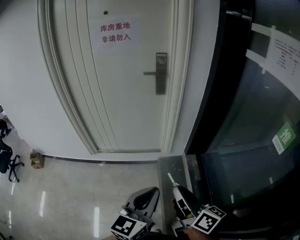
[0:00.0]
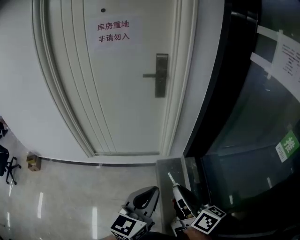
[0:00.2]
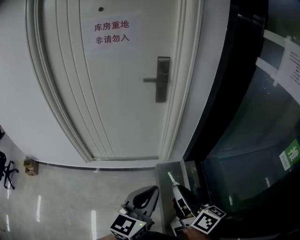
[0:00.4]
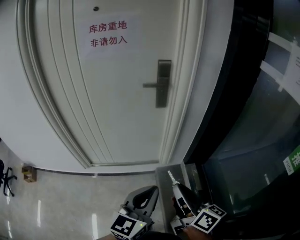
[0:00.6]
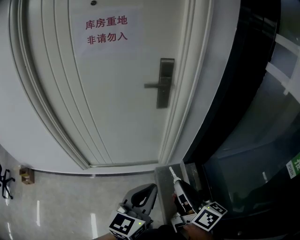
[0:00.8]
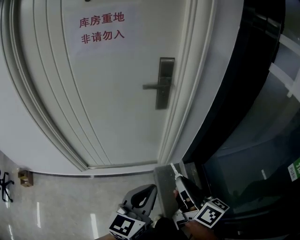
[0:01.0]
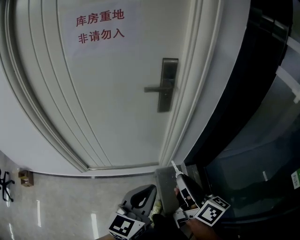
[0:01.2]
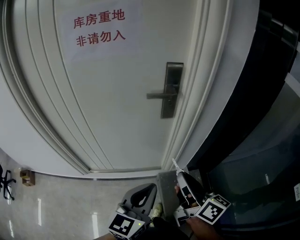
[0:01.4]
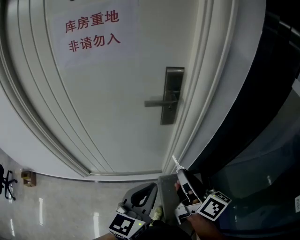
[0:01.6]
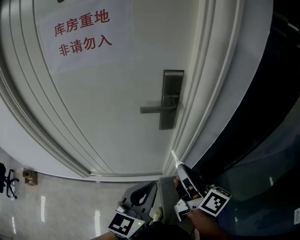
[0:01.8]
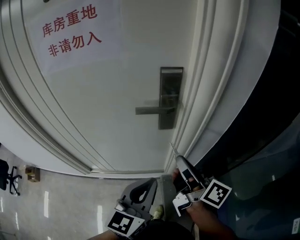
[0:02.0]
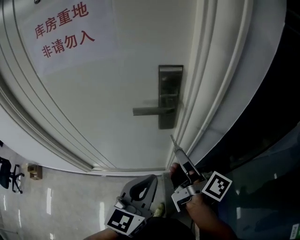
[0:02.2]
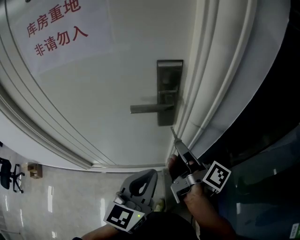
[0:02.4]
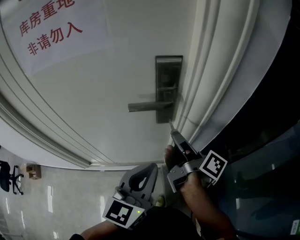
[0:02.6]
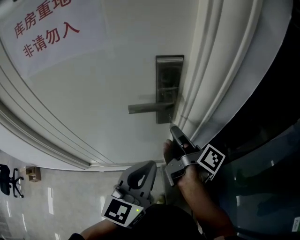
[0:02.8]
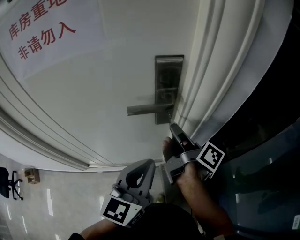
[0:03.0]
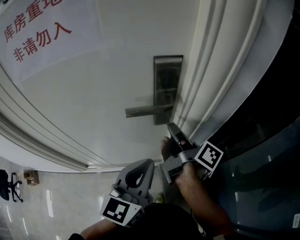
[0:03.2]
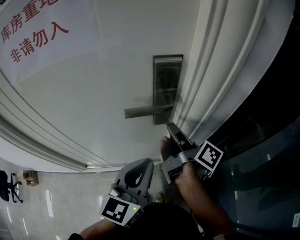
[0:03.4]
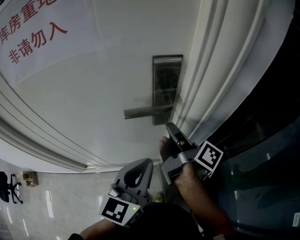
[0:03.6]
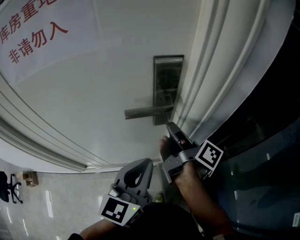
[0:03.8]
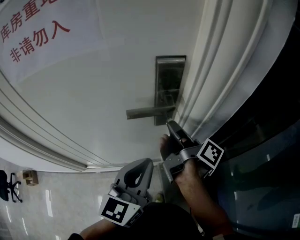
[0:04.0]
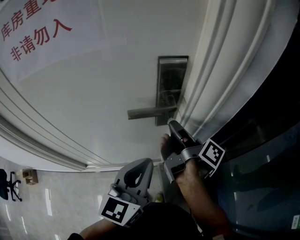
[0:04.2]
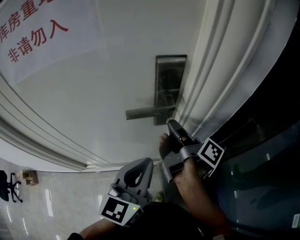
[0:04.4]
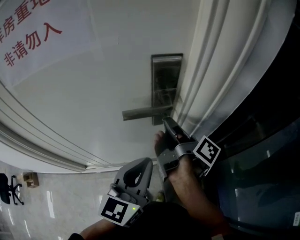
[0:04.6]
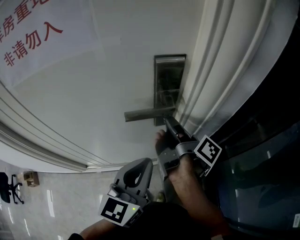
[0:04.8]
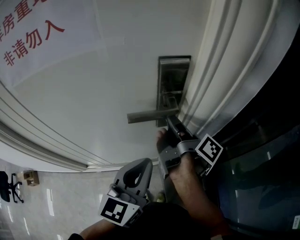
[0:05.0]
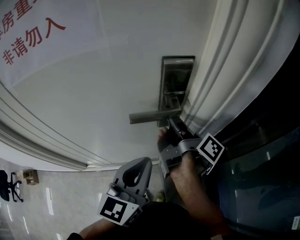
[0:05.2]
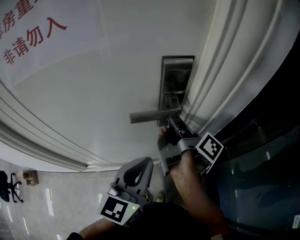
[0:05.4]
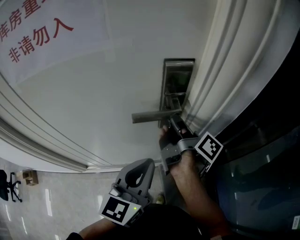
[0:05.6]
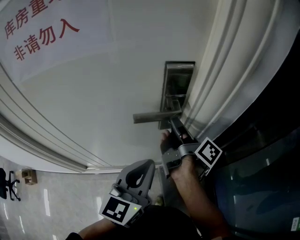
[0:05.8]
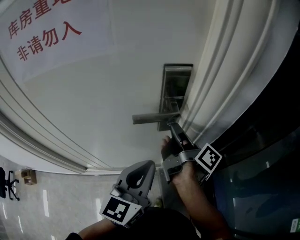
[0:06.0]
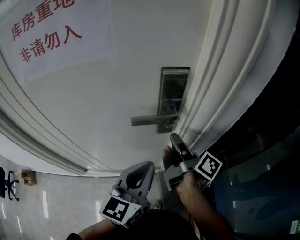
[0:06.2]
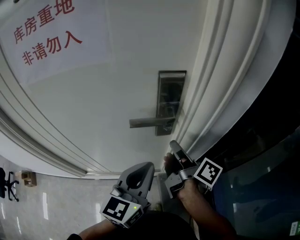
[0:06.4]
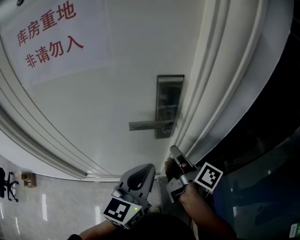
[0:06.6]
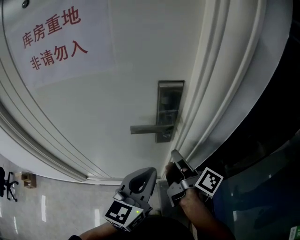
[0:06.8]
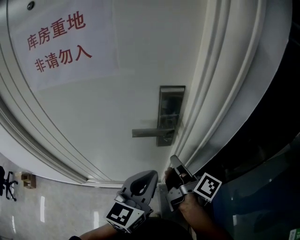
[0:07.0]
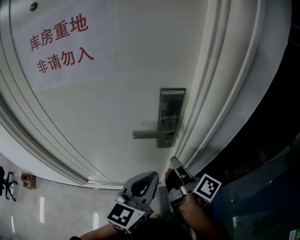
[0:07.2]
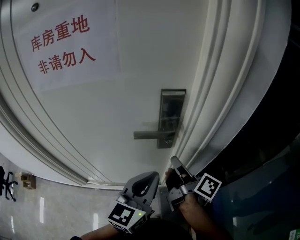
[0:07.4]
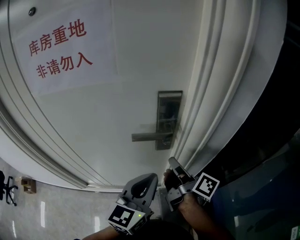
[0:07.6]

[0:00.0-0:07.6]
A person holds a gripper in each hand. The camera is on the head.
0:00.0 to 0:01.6: Both grippers move forward, roughly 40 cm.
0:01.6 to 0:03.0: The grippers both shift forward by some 20 cm. The right gripper changes its angle by some 40 degrees.
0:03.0 to 0:06.0: There are only small adjustments of the grippers.
0:06.0 to 0:07.6: The right gripper is displaced backward by roughly 5 cm.

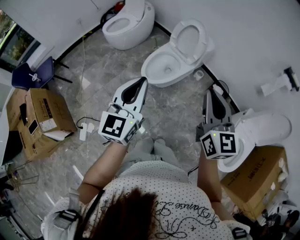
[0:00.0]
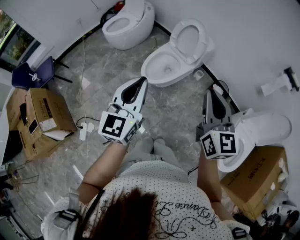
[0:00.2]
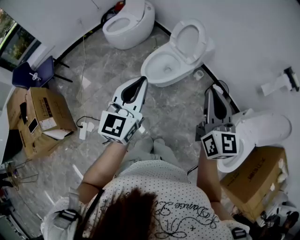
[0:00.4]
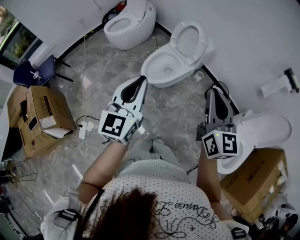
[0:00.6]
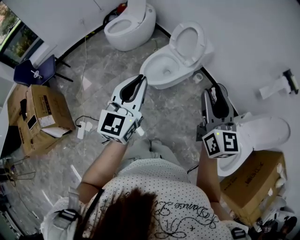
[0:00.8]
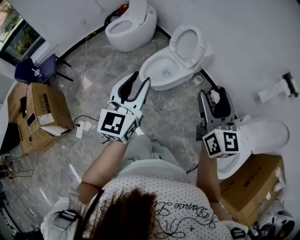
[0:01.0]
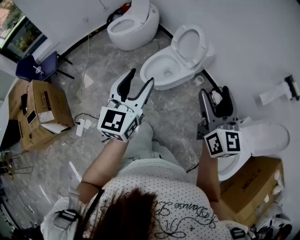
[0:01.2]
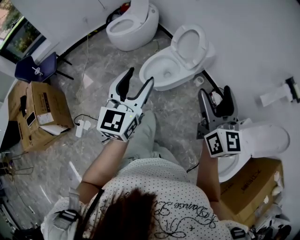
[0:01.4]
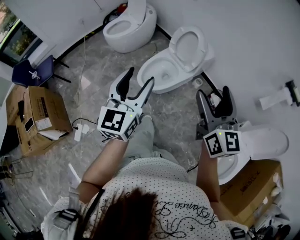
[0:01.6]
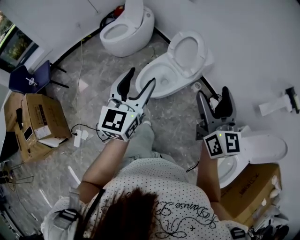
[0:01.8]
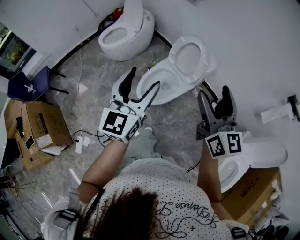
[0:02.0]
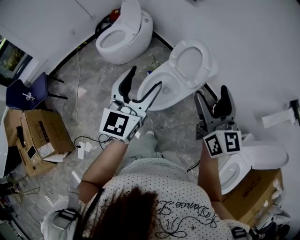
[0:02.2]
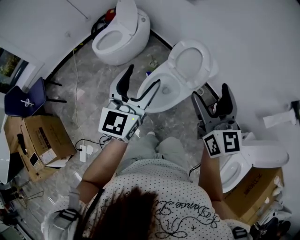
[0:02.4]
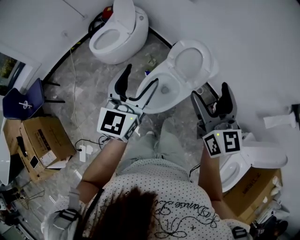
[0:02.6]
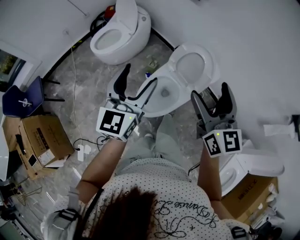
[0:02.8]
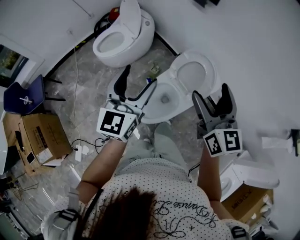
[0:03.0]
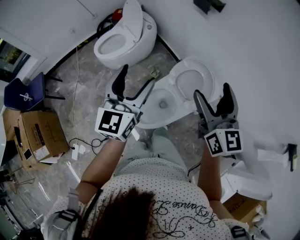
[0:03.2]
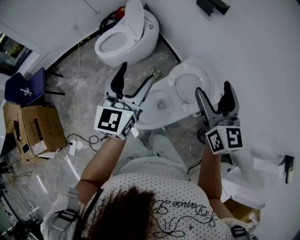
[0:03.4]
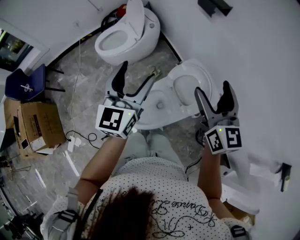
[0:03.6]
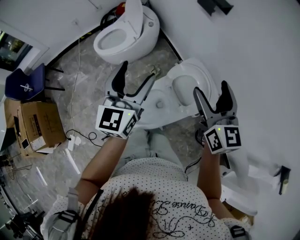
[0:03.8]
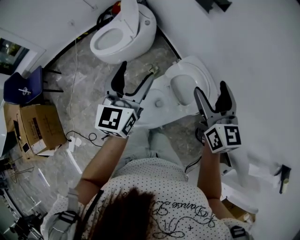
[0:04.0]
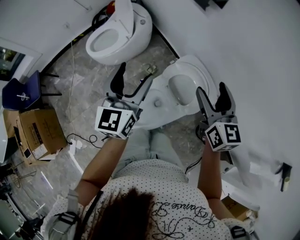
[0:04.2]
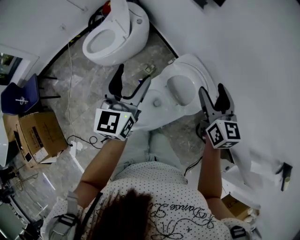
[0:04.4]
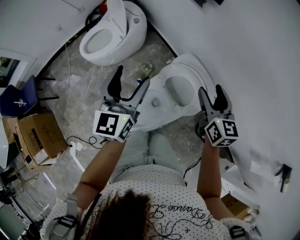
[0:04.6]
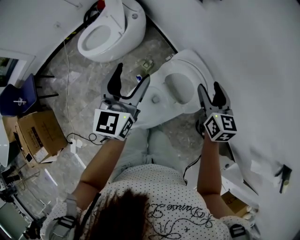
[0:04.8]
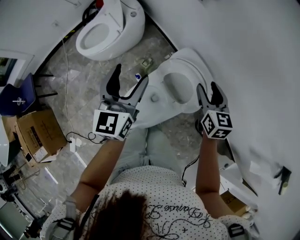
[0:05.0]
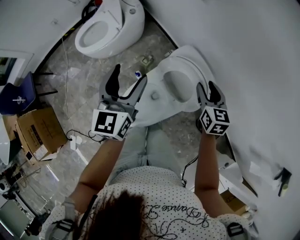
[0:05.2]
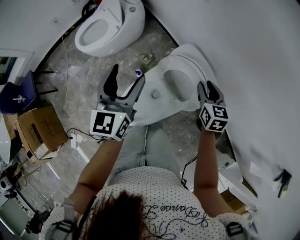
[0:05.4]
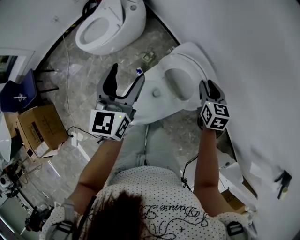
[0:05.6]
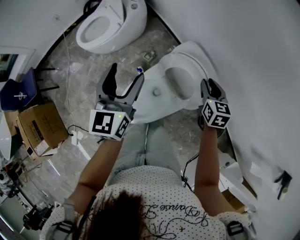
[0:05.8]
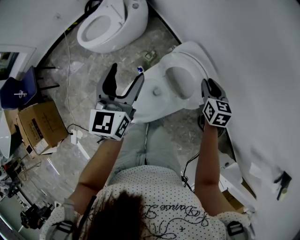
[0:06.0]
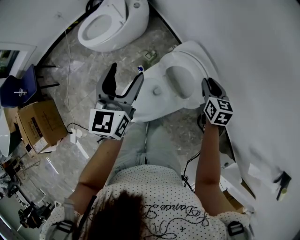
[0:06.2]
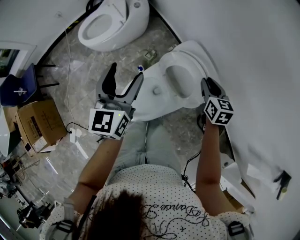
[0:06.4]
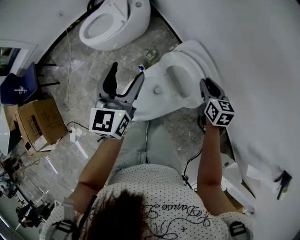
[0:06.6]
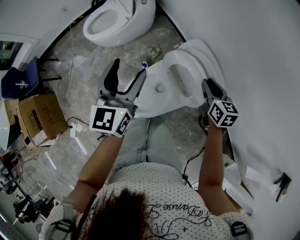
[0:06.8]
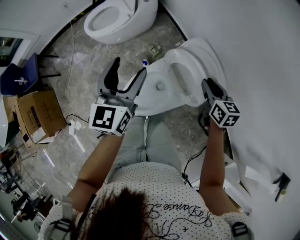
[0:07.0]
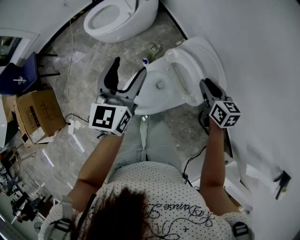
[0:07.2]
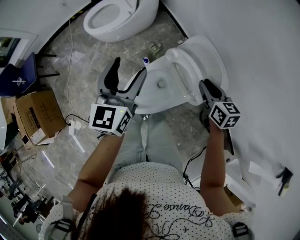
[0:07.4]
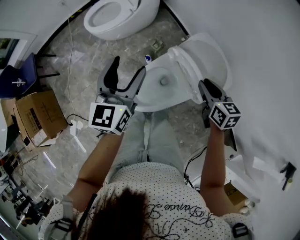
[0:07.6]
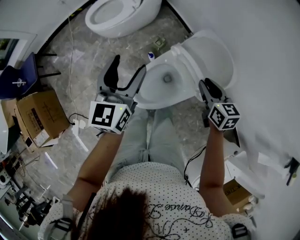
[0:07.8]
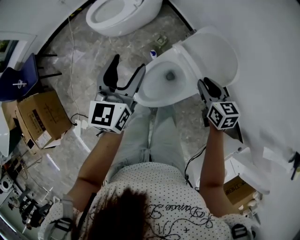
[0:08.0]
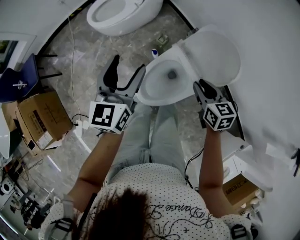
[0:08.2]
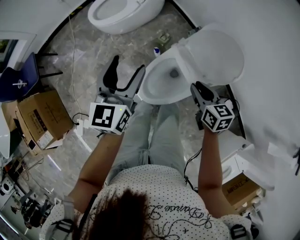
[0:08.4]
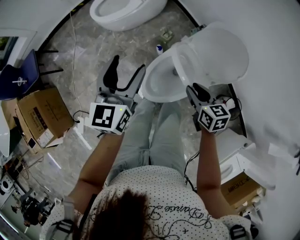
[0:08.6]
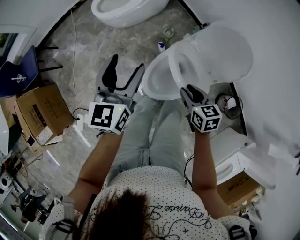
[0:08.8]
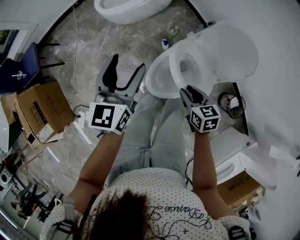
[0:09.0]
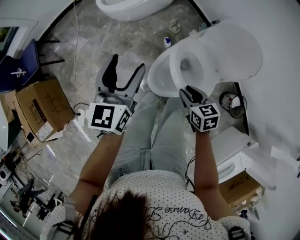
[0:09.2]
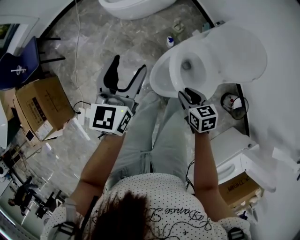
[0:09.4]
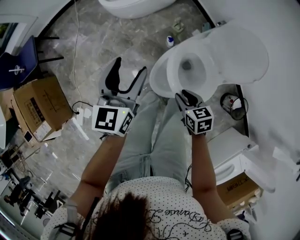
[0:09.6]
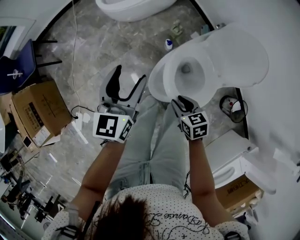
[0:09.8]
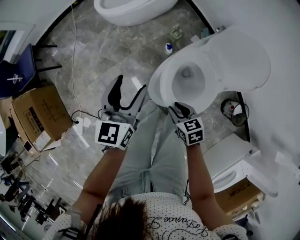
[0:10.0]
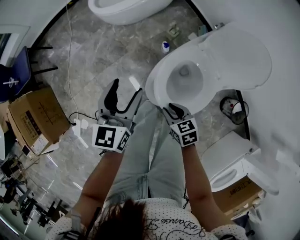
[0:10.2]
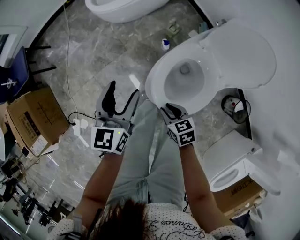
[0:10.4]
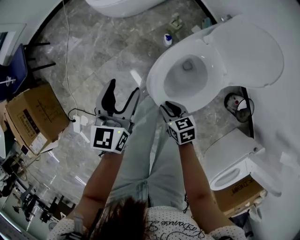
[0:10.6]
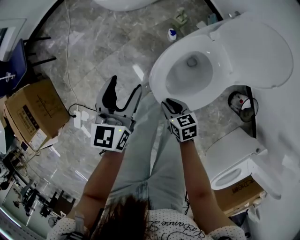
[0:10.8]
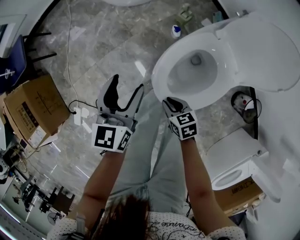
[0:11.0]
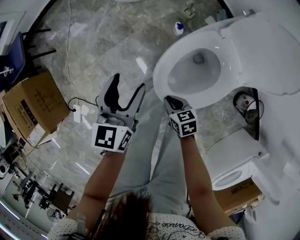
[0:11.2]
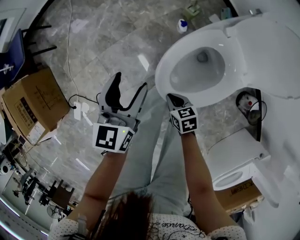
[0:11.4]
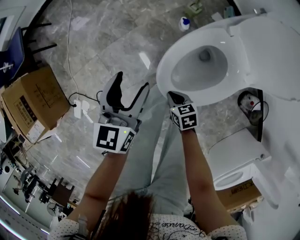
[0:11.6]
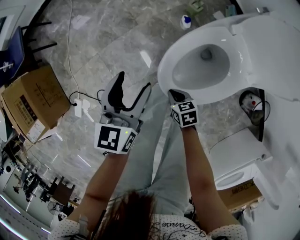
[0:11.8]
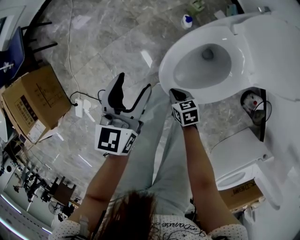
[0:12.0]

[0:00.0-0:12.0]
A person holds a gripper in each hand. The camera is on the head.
0:00.0 to 0:01.6: The right gripper travels forward and to the right by about 10 cm, and opens its fingers; the left gripper shifts roughly 5 cm forward, and opens its fingers.
0:01.6 to 0:03.0: The two grippers go roughly 35 cm forward.
0:03.0 to 0:04.4: The right gripper heads forward, to the right and downward, covering about 25 cm, while the left gripper travels forward and to the right by some 15 cm.
0:04.4 to 0:06.0: The right gripper travels downward by some 20 cm, changes its angle by about 20 degrees, and closes up. Meanwhile the left gripper travels downward by about 5 cm.
0:06.0 to 0:07.6: The left gripper shifts some 10 cm to the left; the right gripper moves to the left and backward, about 15 cm.
0:07.6 to 0:09.0: The right gripper heads to the left, backward and downward, covering approximately 25 cm, while the left gripper shifts roughly 15 cm to the left.
0:09.0 to 0:10.4: The right gripper moves downward and to the left, roughly 15 cm. The left gripper heads downward, covering about 15 cm.
0:10.4 to 0:12.0: The left gripper moves downward, about 10 cm. Meanwhile the right gripper goes about 20 cm downward.

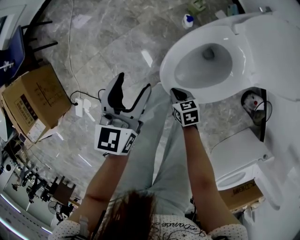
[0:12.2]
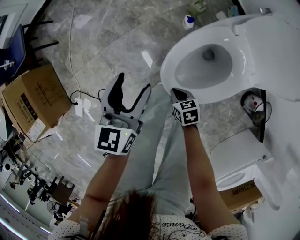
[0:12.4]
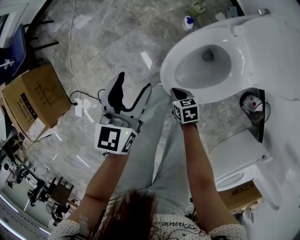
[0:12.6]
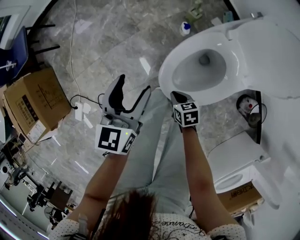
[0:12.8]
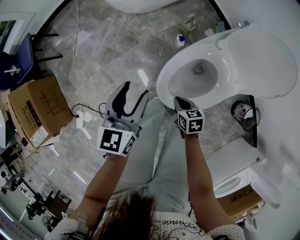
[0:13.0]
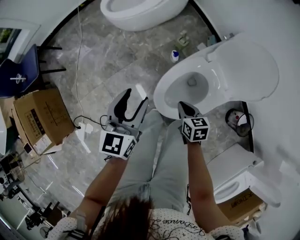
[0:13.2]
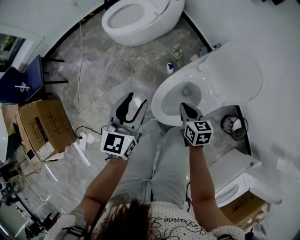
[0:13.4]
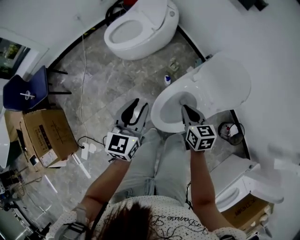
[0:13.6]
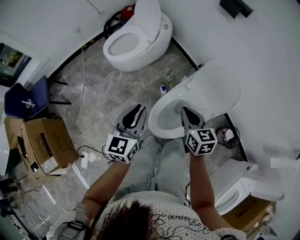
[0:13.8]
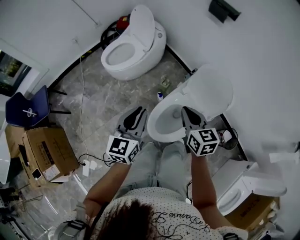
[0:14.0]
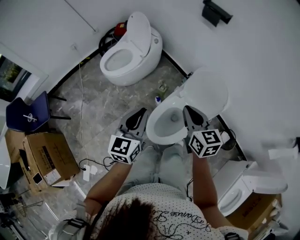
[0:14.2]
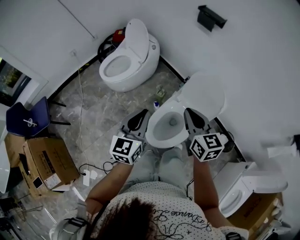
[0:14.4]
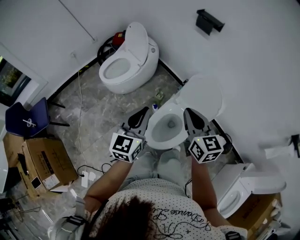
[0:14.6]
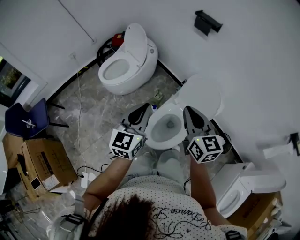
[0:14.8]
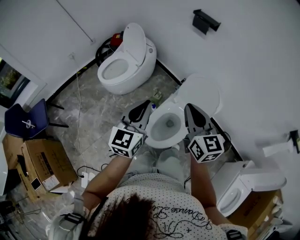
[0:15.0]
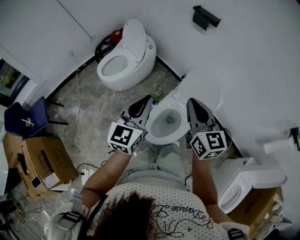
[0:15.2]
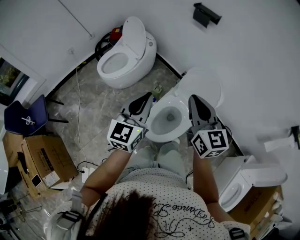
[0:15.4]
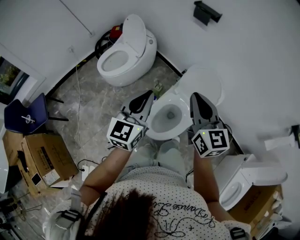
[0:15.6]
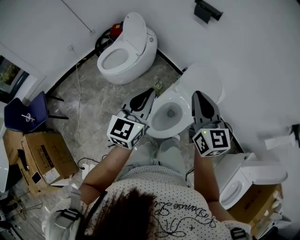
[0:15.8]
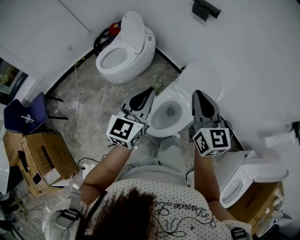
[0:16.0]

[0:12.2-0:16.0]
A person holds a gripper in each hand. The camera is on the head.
0:12.2 to 0:13.4: The left gripper shifts some 20 cm upward. The right gripper shifts approximately 30 cm upward and to the right, and swivels approximately 30 degrees.
0:13.4 to 0:14.8: The left gripper is displaced upward by some 20 cm, and closes its fingers. Meanwhile the right gripper goes approximately 35 cm upward, and tilts its fingers about 30 degrees upward.
0:14.8 to 0:16.0: The grippers make only small movements.
